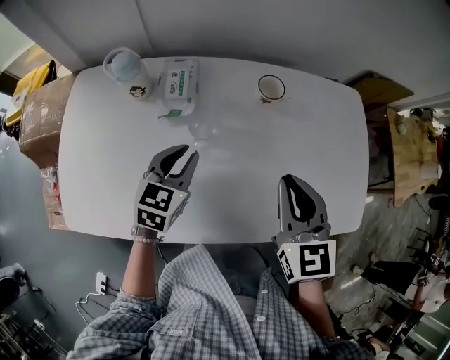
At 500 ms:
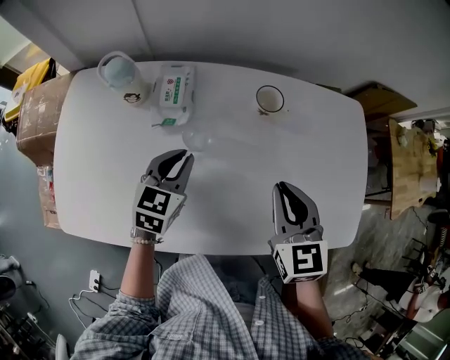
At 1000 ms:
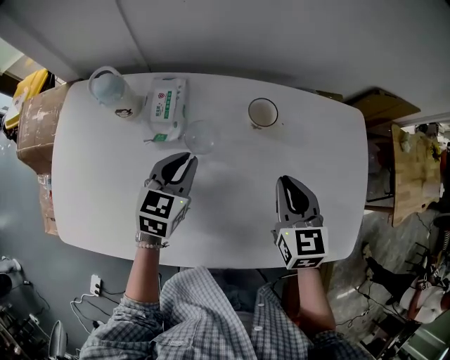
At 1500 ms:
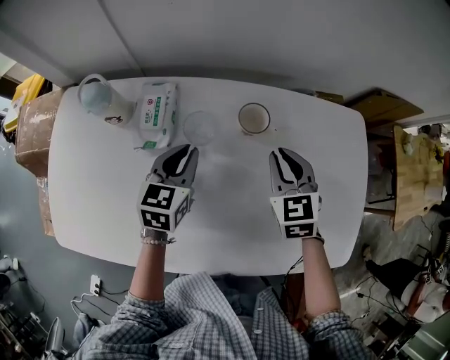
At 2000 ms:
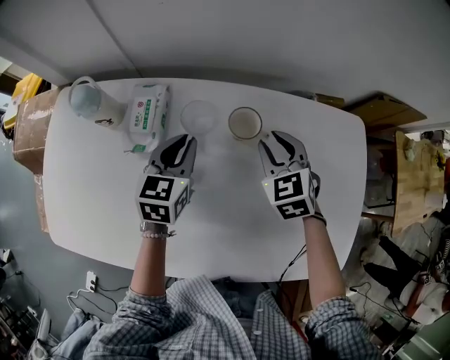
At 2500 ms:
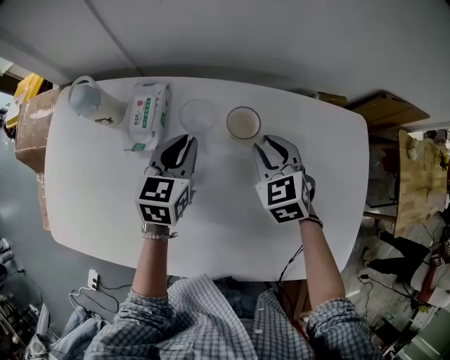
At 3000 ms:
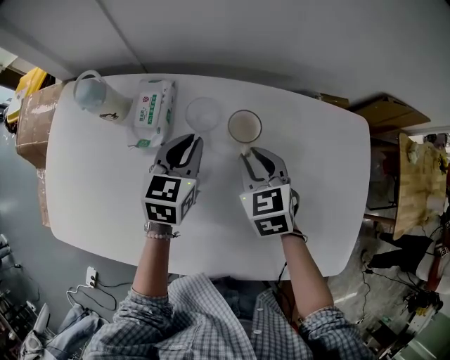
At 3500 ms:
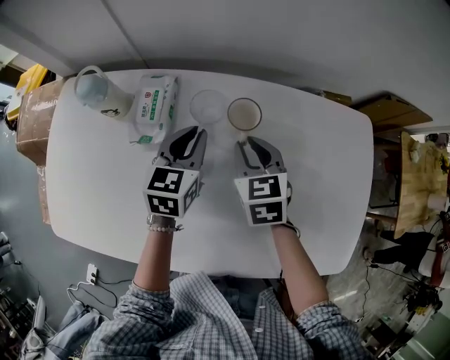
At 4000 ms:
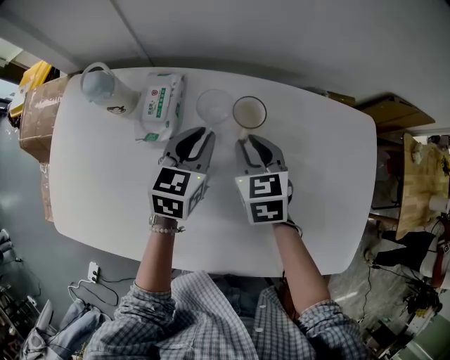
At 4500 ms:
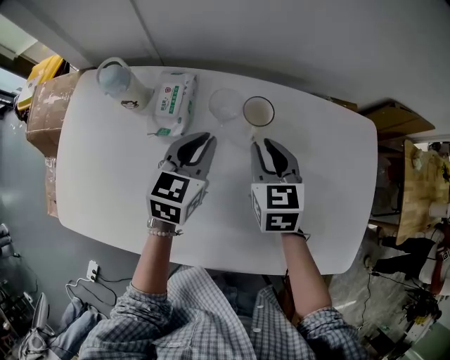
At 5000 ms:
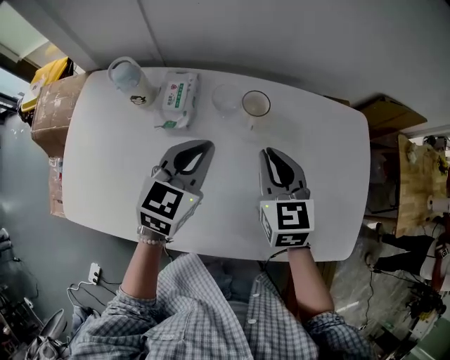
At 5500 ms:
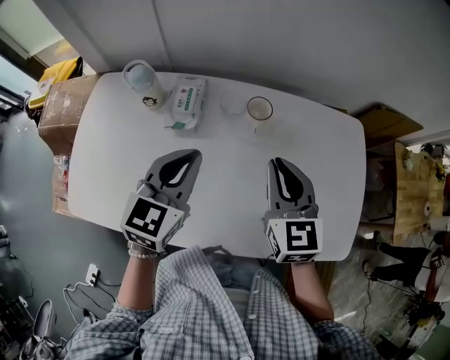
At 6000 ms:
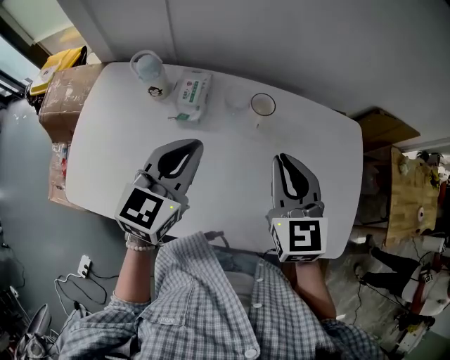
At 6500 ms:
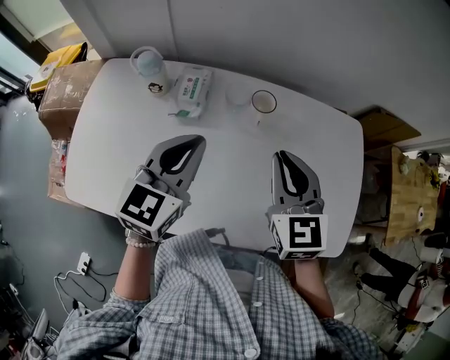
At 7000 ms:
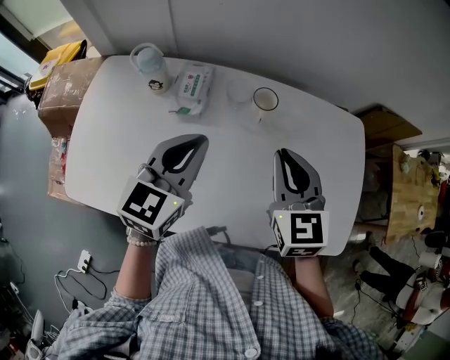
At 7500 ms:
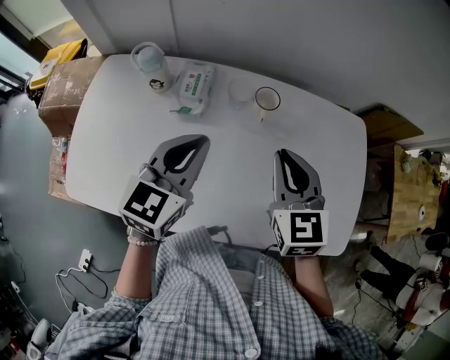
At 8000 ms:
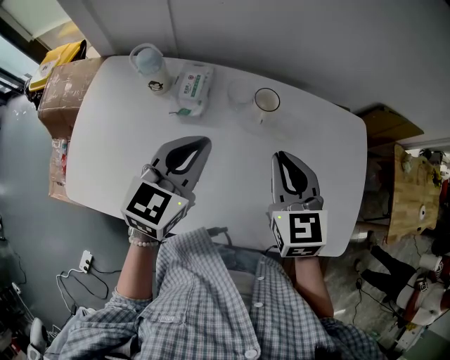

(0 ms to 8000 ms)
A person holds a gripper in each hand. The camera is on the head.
0 ms - 2000 ms: The left gripper is displaced forward and to the right by approximately 15 cm. The right gripper moves forward and downward, about 25 cm, and changes its angle by approximately 30 degrees.
2000 ms - 4000 ms: The right gripper is displaced to the left by roughly 10 cm.
4000 ms - 6000 ms: The two grippers go about 20 cm upward and backward. The right gripper changes its angle by approximately 20 degrees.
6000 ms - 8000 ms: The grippers make only small movements.

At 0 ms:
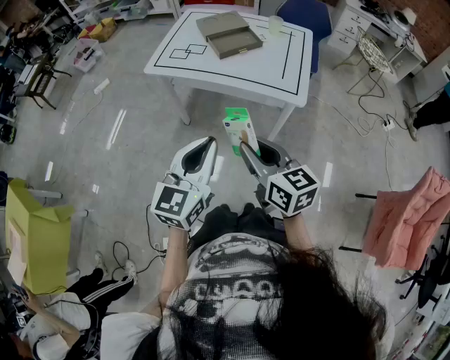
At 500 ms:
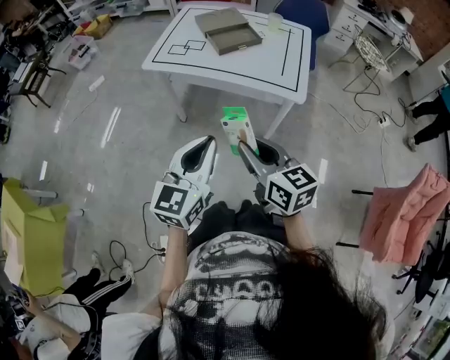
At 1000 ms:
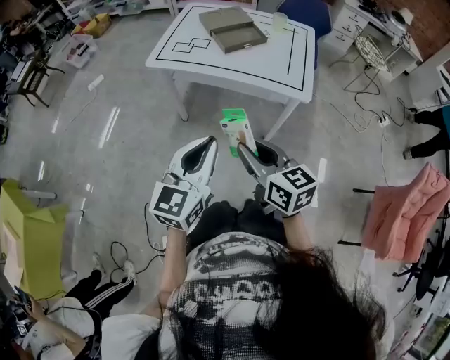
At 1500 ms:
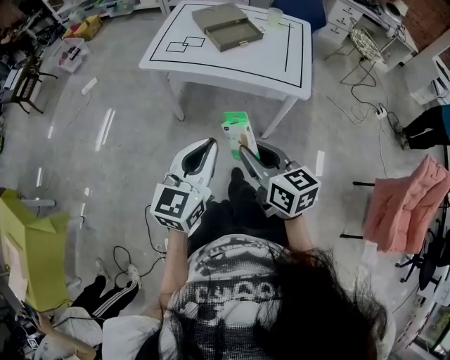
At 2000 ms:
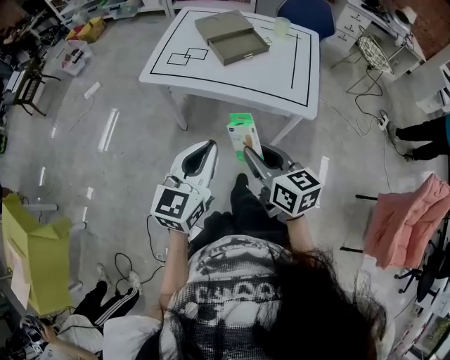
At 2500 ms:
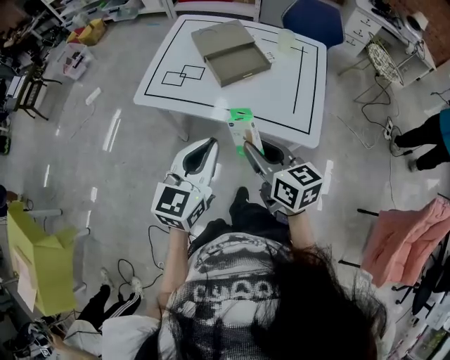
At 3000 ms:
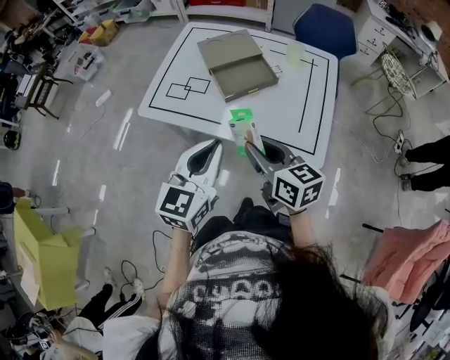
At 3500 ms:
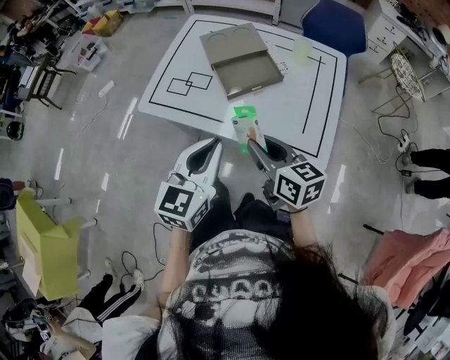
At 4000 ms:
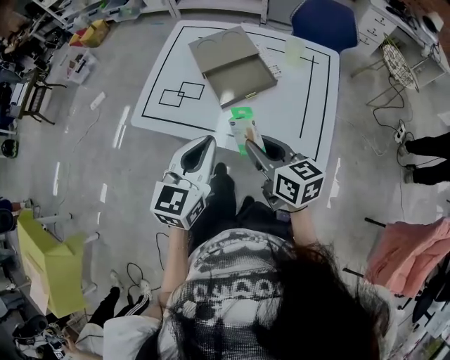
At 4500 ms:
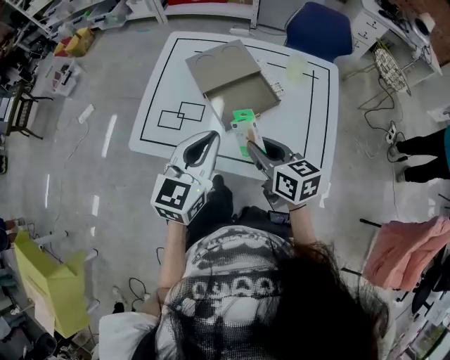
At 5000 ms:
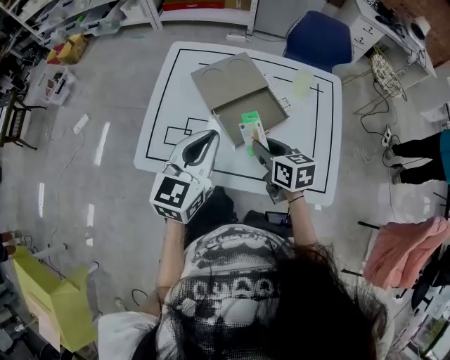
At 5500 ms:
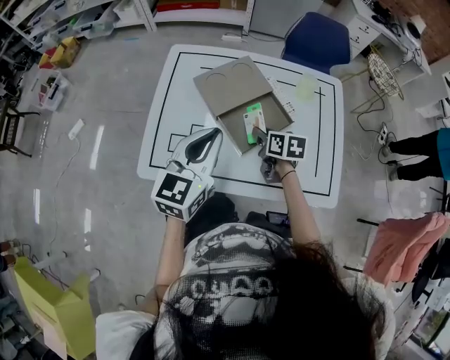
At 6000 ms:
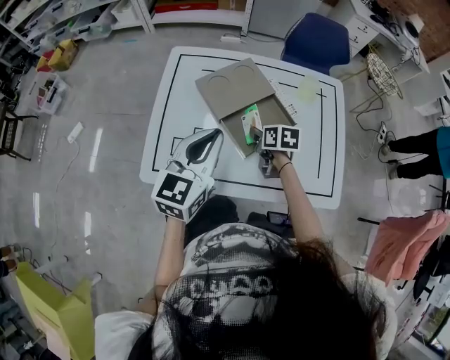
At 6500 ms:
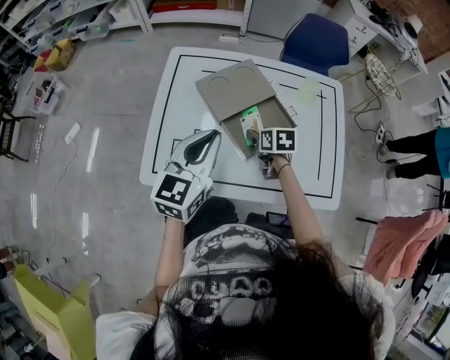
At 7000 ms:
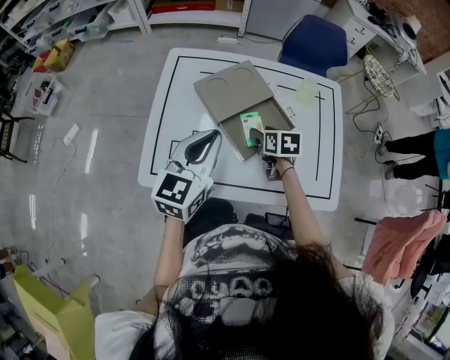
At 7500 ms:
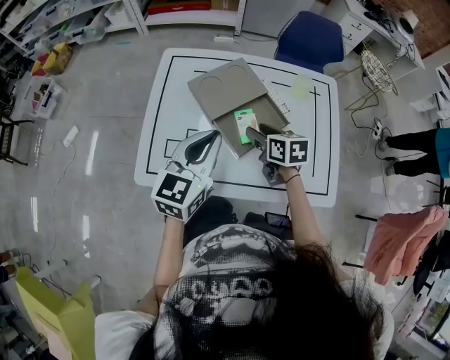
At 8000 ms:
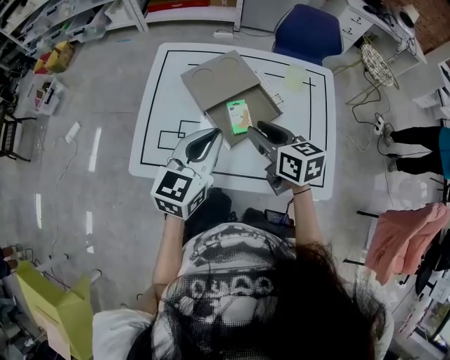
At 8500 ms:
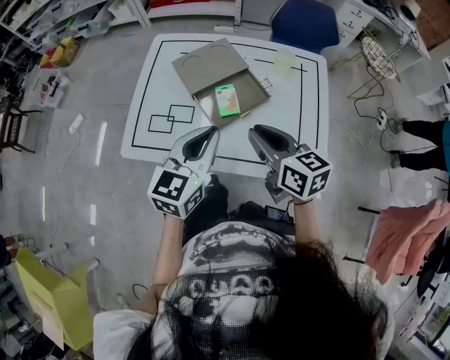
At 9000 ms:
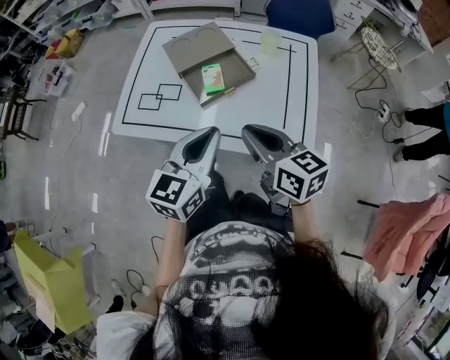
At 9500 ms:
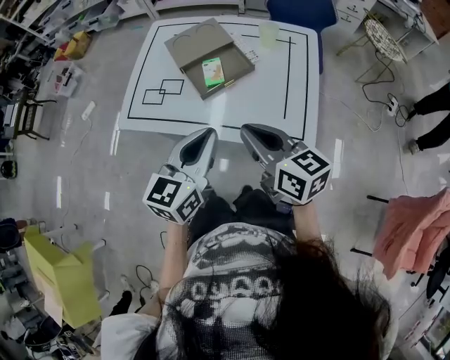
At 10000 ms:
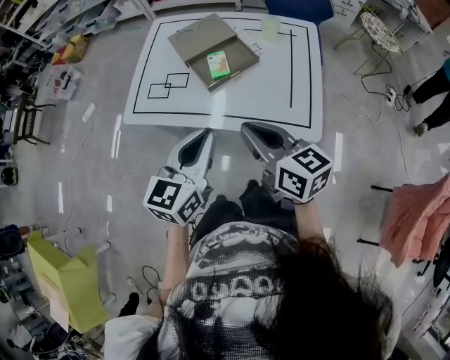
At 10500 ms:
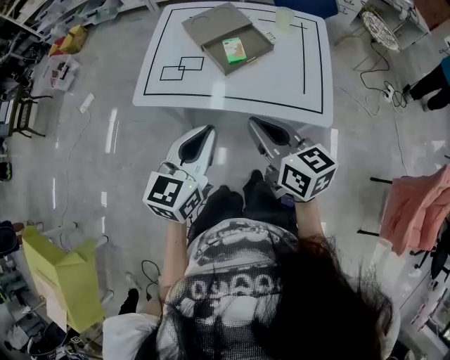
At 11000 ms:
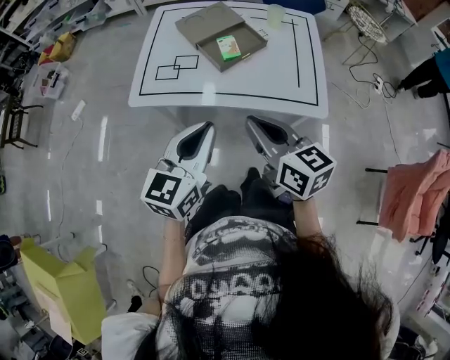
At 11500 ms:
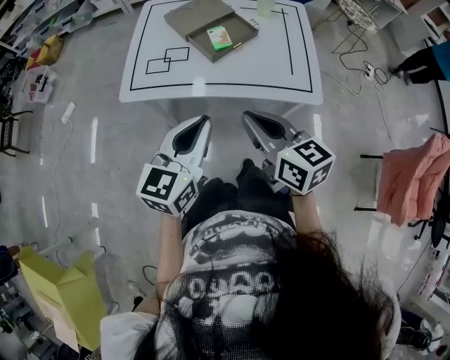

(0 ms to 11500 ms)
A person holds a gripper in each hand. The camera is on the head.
0 ms - 2000 ms: Both grippers travel together forward, roughly 10 cm.
2000 ms - 4000 ms: Both grippers travel together forward, some 30 cm.
4000 ms - 6000 ms: The left gripper travels forward and to the left by roughly 25 cm; the right gripper travels forward and downward by about 30 cm, and tilts its fingers approximately 30 degrees downward.
6000 ms - 7500 ms: The right gripper travels upward by some 5 cm, and opens.
7500 ms - 9500 ms: The right gripper travels backward, upward and to the right by about 35 cm, swivels approximately 30 degrees, and closes its fingers; the left gripper is displaced backward and to the right by roughly 30 cm.
9500 ms - 11500 ms: Both grippers move to the left and backward, approximately 20 cm.

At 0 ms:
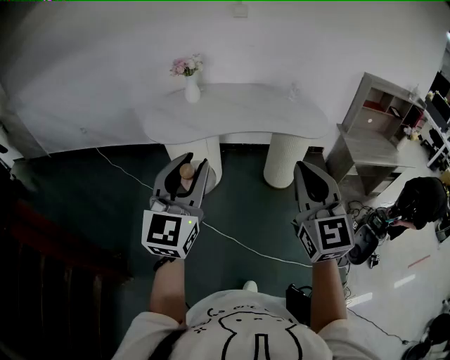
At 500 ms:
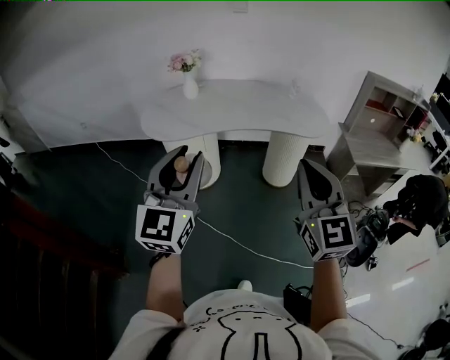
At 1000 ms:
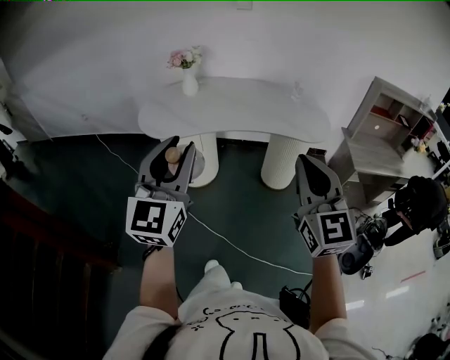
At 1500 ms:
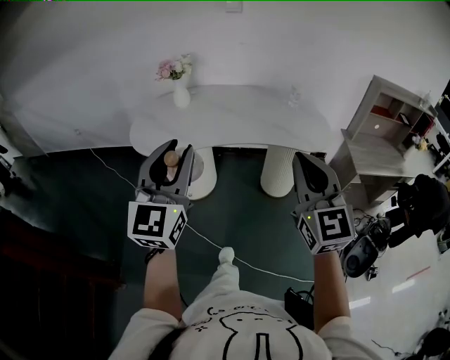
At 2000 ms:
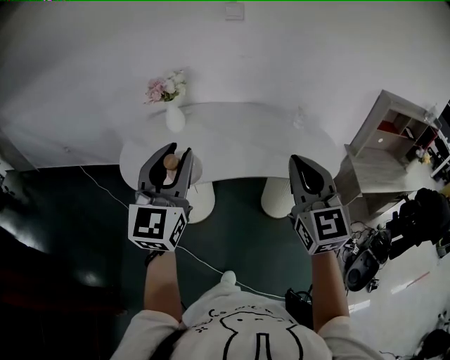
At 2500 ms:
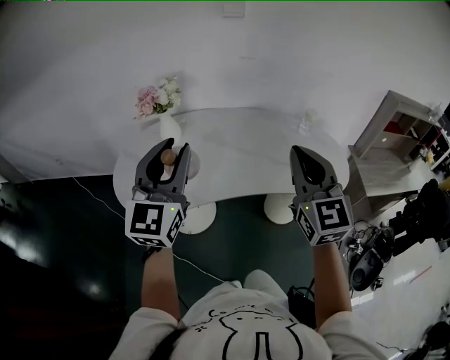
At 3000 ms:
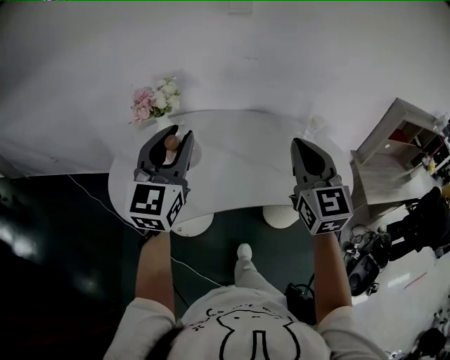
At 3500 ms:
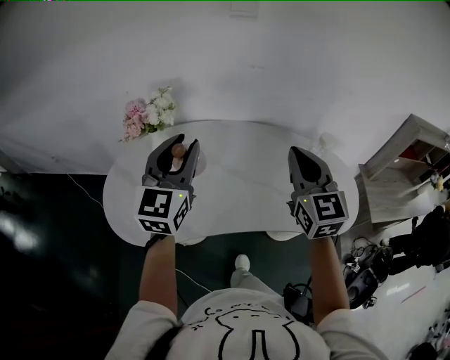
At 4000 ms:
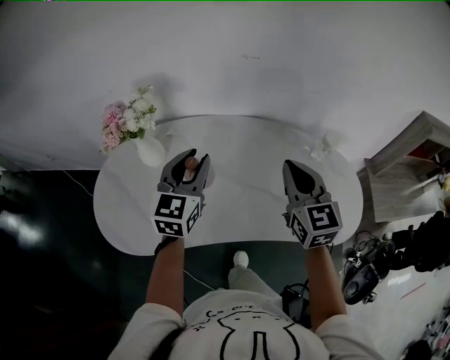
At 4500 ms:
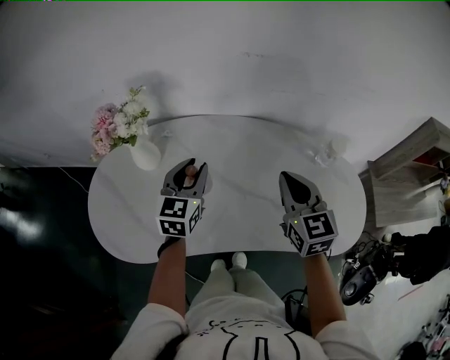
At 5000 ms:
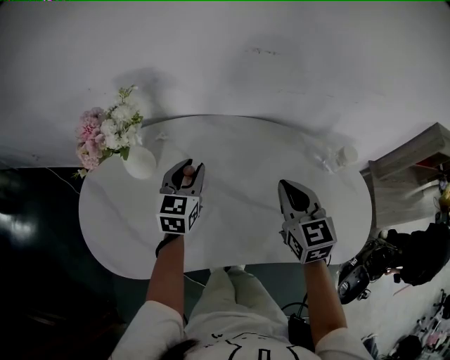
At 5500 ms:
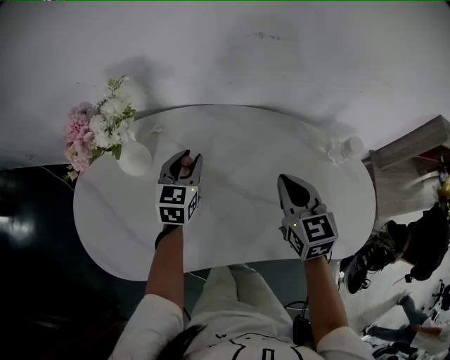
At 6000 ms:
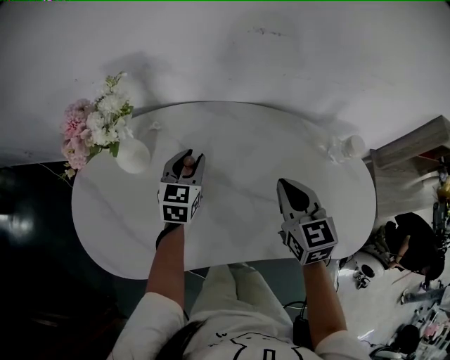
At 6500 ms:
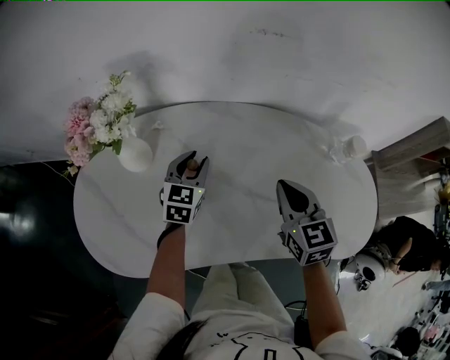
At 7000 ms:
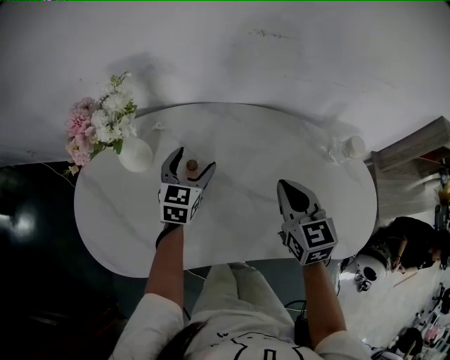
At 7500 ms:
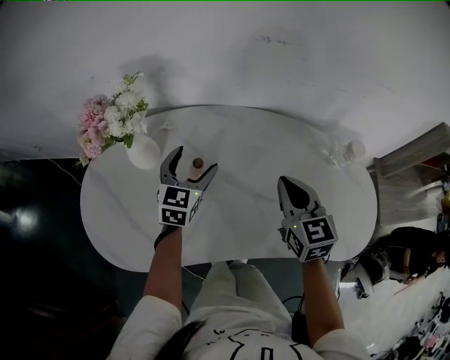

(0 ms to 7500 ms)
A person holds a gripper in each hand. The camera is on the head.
0 ms - 2000 ms: Both grippers travel together forward, roughly 35 cm.
2000 ms - 4000 ms: Both grippers are carried forward, roughly 40 cm. The left gripper goes some 15 cm downward, and changes its angle by about 20 degrees.
4000 ms - 5500 ms: The right gripper goes roughly 15 cm downward and forward; the left gripper heads downward and forward, covering about 25 cm.
5500 ms - 7500 ms: The left gripper opens up.
